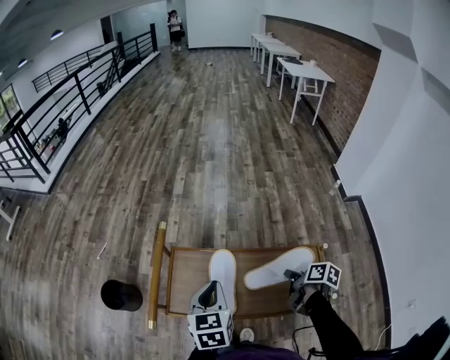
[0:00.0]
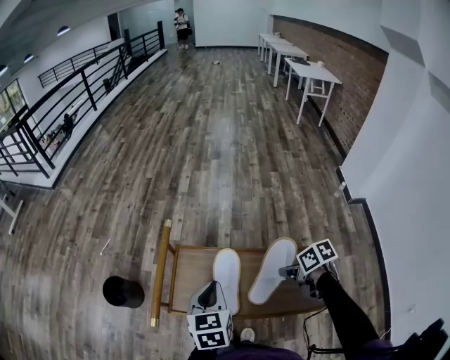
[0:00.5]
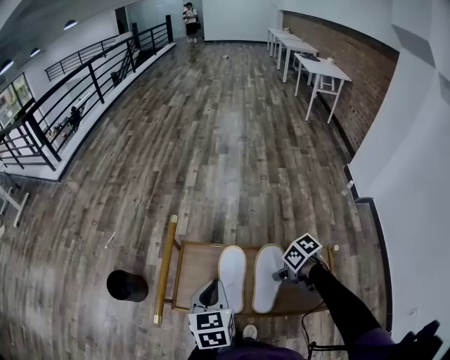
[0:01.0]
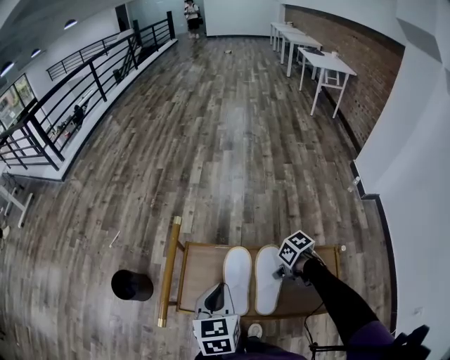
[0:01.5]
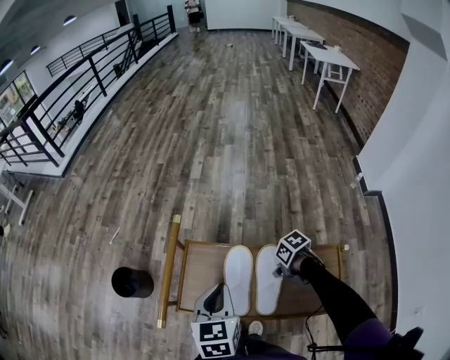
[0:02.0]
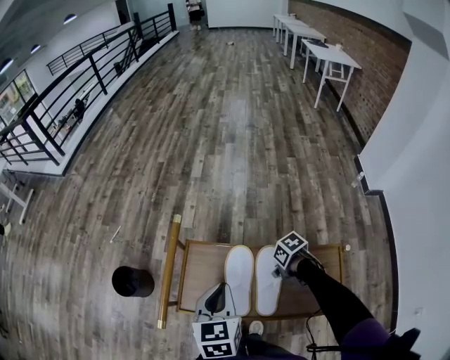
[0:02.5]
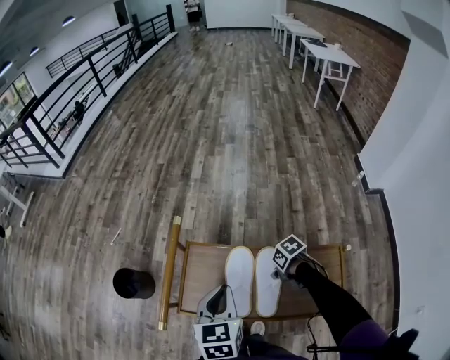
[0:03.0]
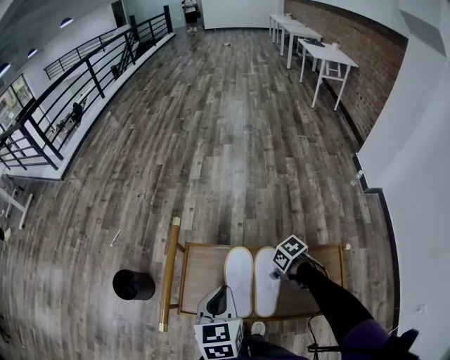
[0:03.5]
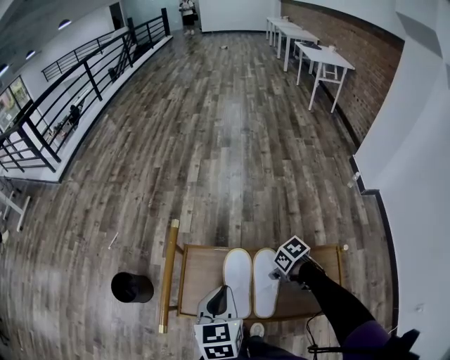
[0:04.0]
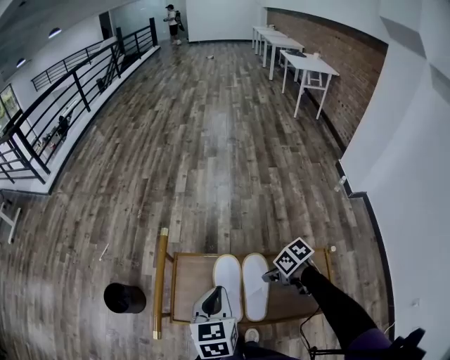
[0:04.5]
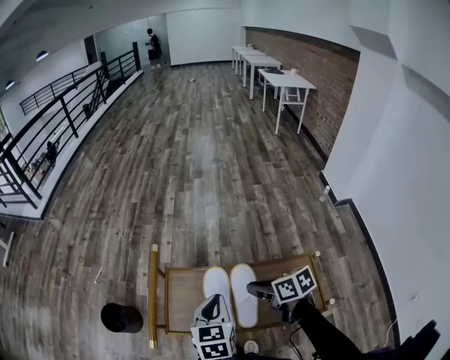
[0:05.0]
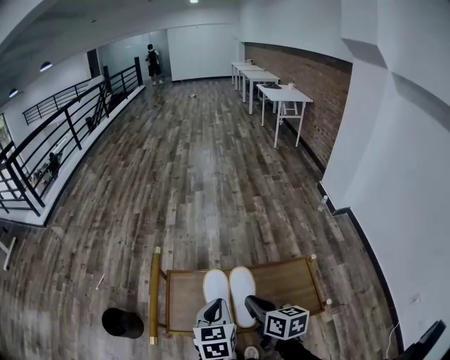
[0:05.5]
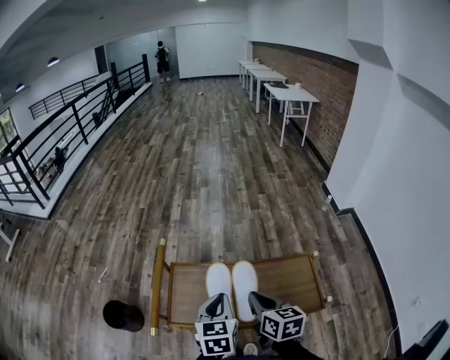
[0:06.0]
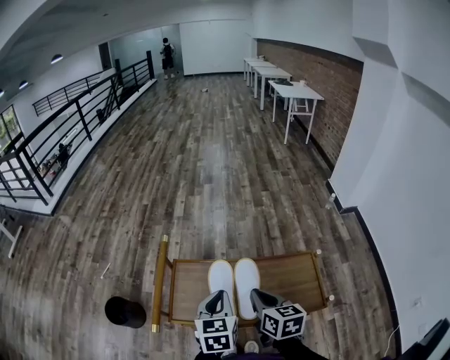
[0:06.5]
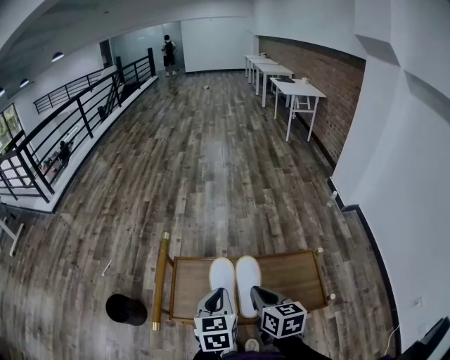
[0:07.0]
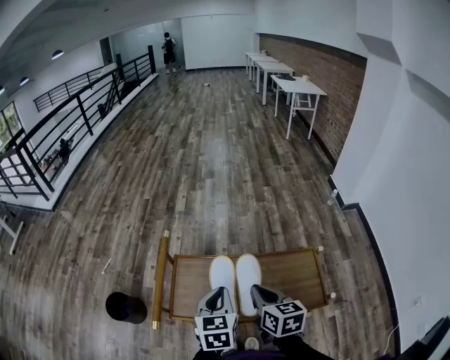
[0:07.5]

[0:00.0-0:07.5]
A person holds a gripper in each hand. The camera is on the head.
0.0 to 2.0 s: The right gripper changes place by about 15 cm, and swivels approximately 70 degrees.
2.0 to 4.0 s: There are only small adjustments of the grippers.
4.0 to 5.5 s: The left gripper ends up about 5 cm from where it was, while the right gripper shifts roughly 20 cm upward, and angles its fingers upward, by approximately 40 degrees.
5.5 to 7.5 s: The grippers move only a little.

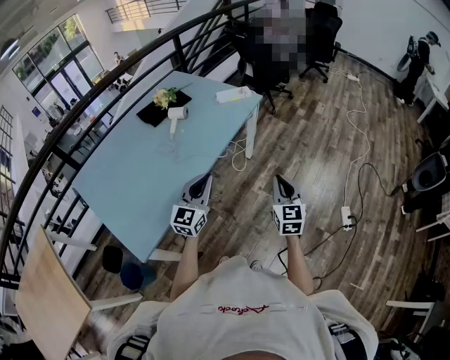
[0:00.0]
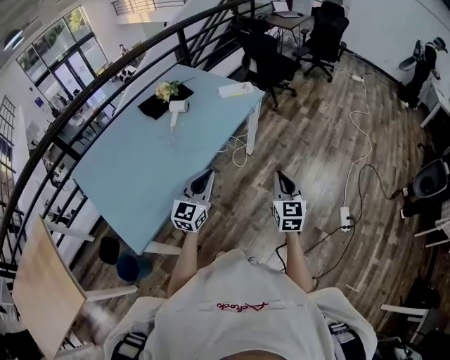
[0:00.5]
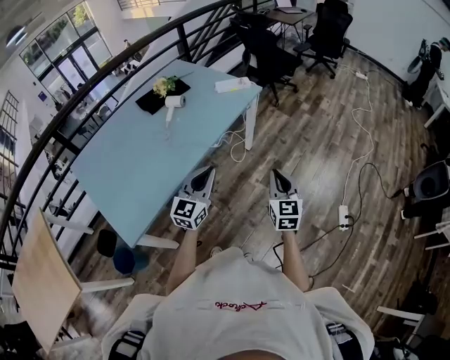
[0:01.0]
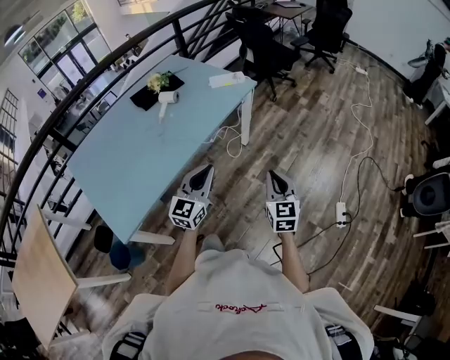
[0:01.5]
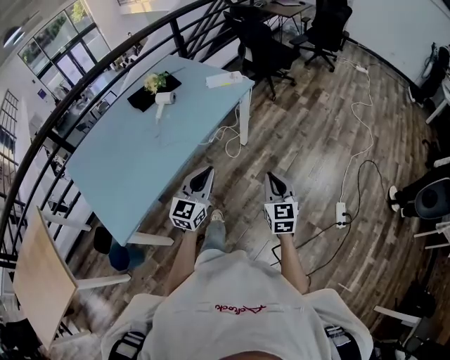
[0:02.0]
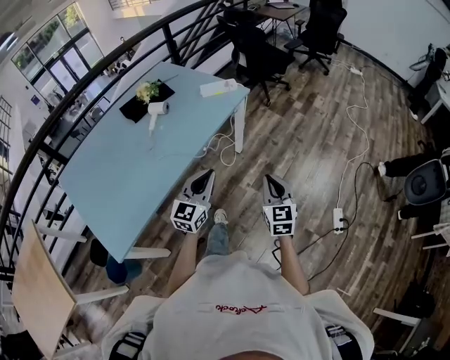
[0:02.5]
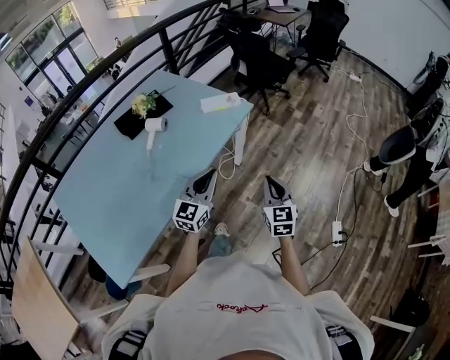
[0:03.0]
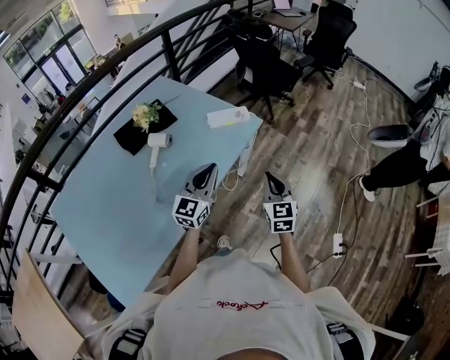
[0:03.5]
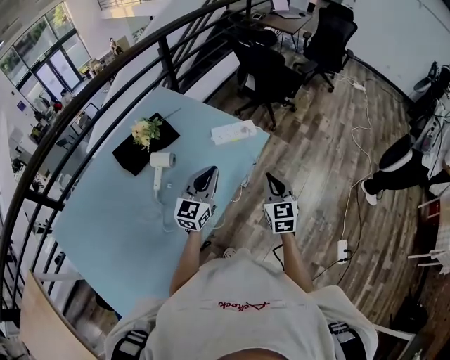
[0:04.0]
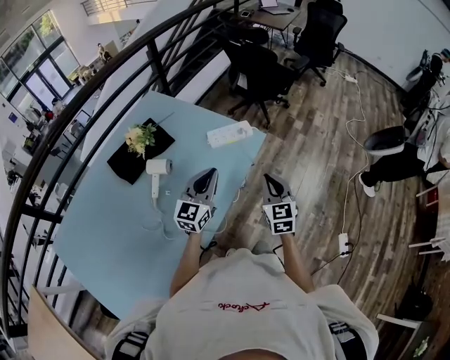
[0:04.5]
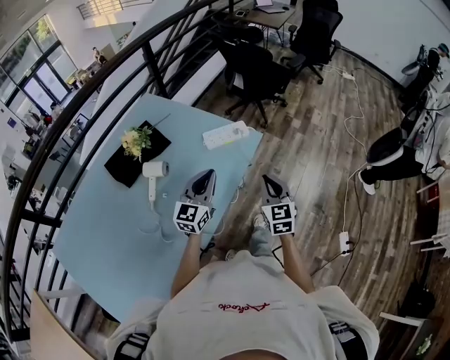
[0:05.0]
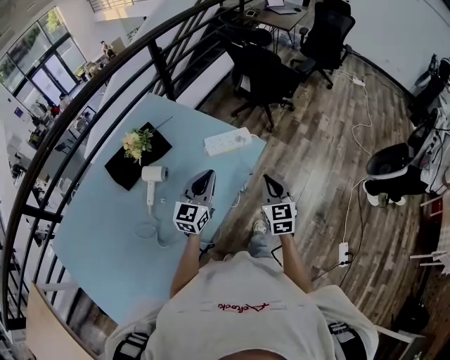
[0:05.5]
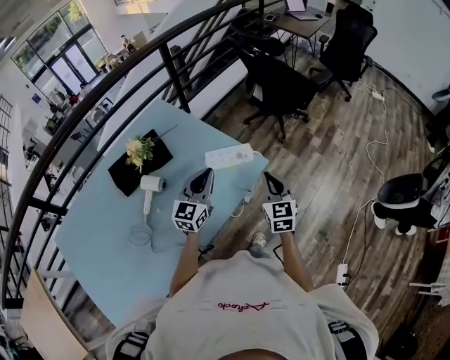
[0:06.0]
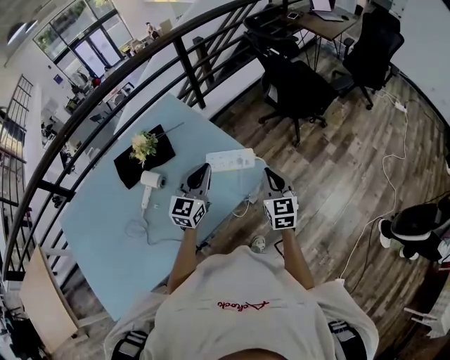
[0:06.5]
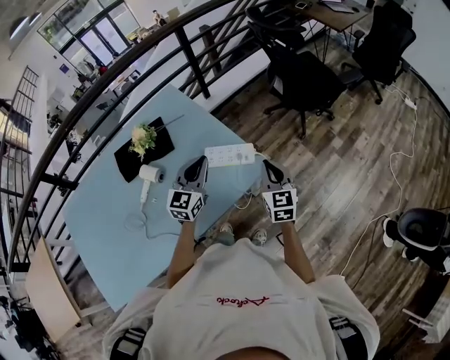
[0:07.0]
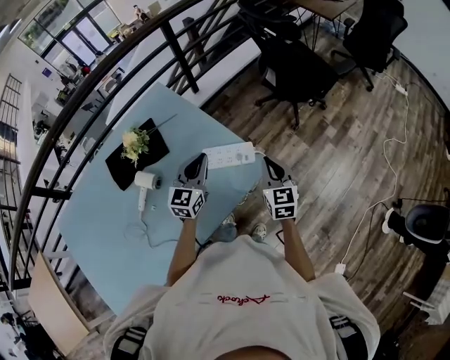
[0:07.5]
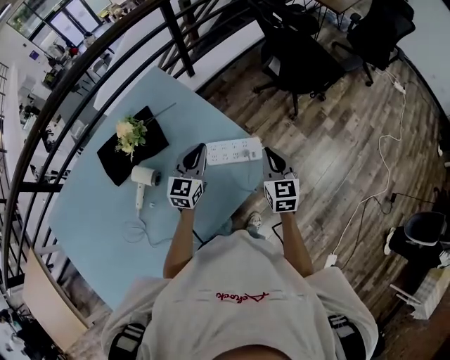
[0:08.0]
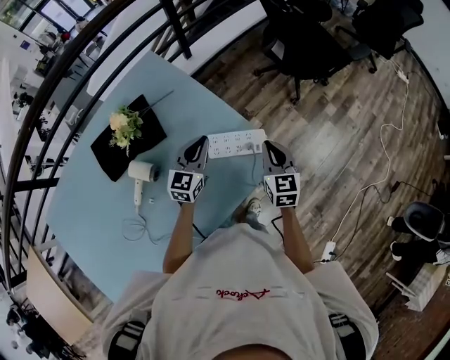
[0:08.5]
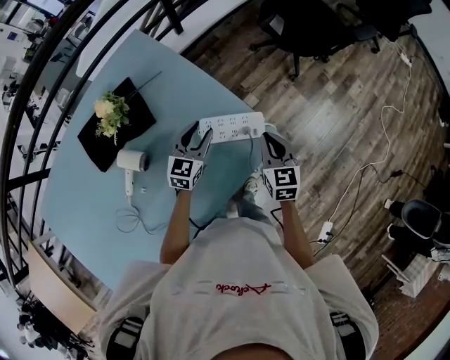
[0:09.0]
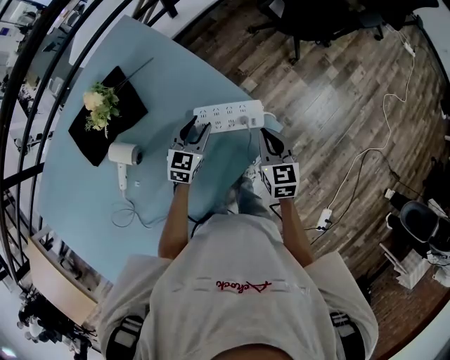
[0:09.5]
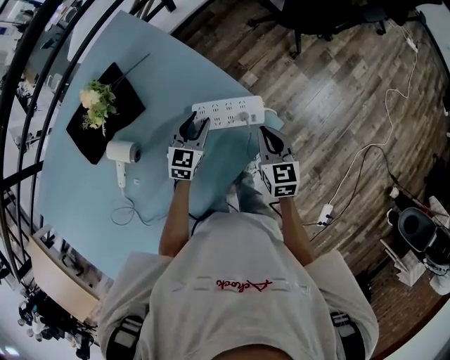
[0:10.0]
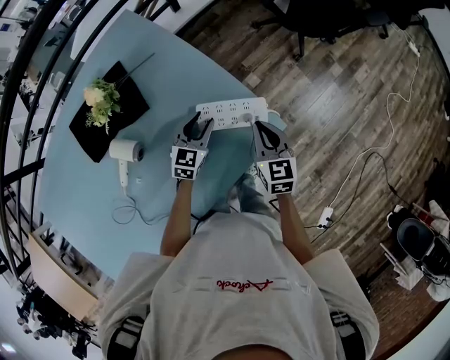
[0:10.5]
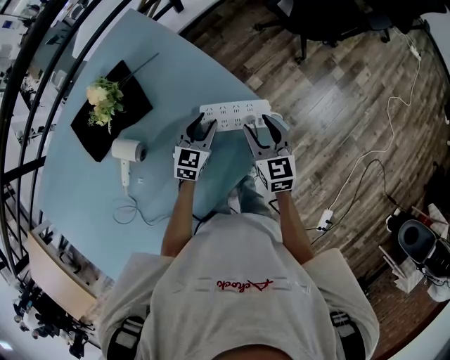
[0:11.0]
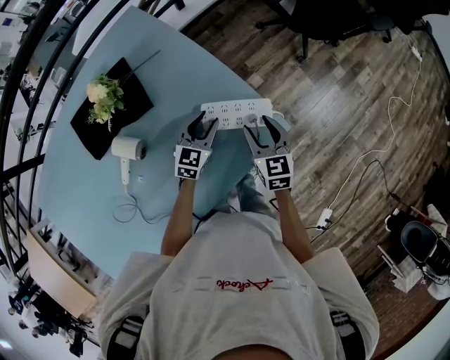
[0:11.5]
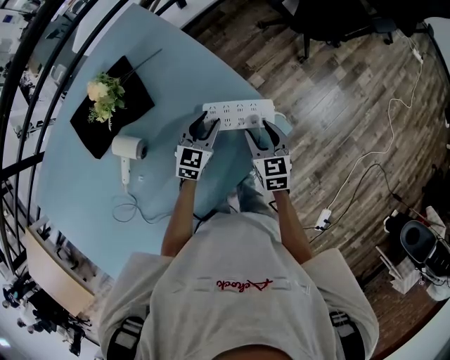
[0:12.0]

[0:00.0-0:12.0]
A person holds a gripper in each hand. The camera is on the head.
0.0 to 2.0 s: The right gripper travels to the right by roughly 10 cm. Meanwhile the left gripper moves to the right, approximately 10 cm.
2.0 to 4.0 s: Both grippers are carried forward, some 40 cm.
4.0 to 6.0 s: Both grippers travel together forward, approximately 15 cm.
6.0 to 8.0 s: The left gripper heads forward and downward, covering about 15 cm; the right gripper moves forward, roughly 15 cm.
8.0 to 10.0 s: Both grippers move downward, about 15 cm. The left gripper opens its fingers.
10.0 to 12.0 s: The right gripper changes place by roughly 5 cm, and opens.

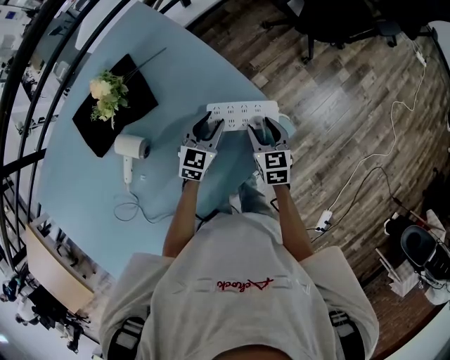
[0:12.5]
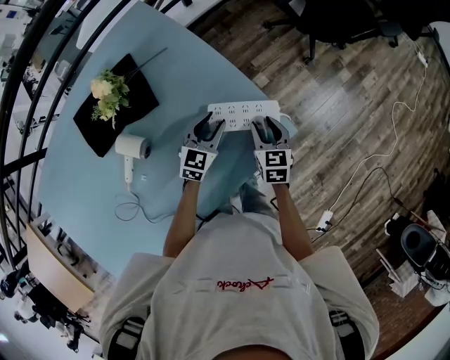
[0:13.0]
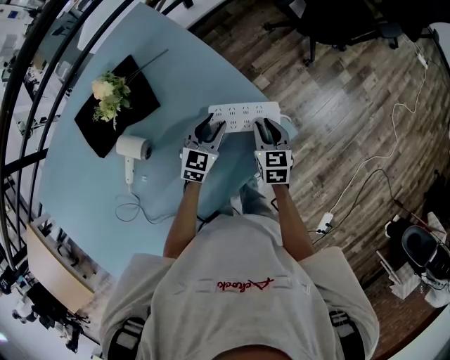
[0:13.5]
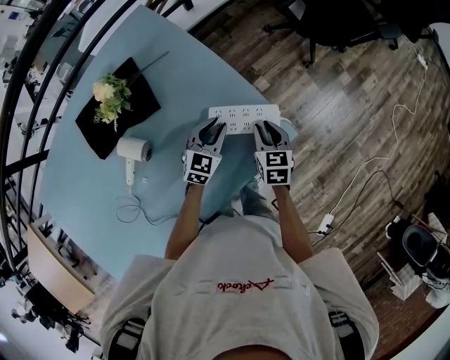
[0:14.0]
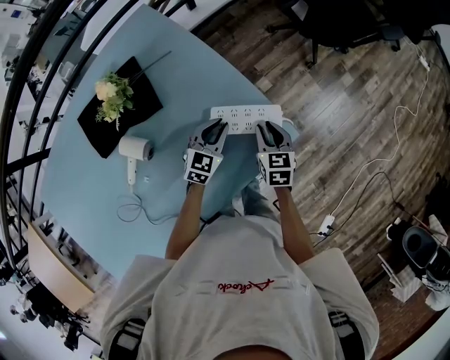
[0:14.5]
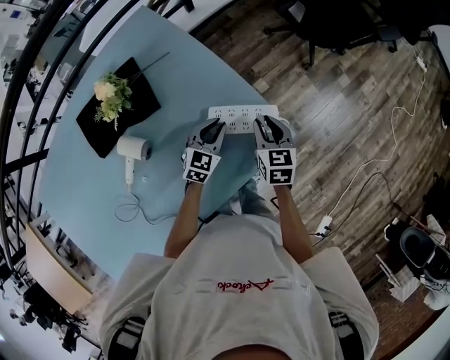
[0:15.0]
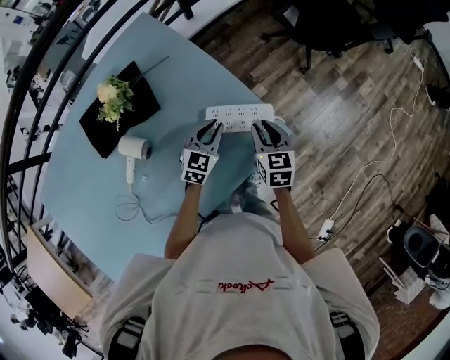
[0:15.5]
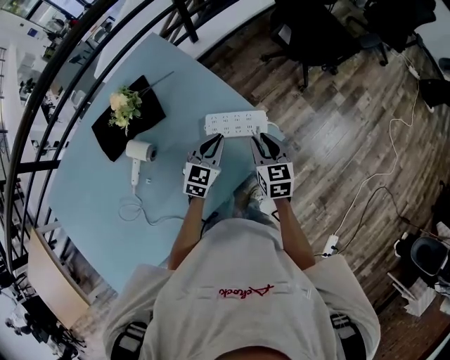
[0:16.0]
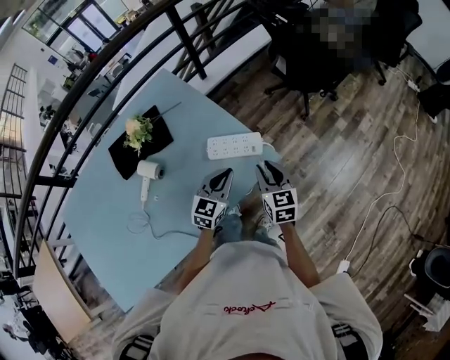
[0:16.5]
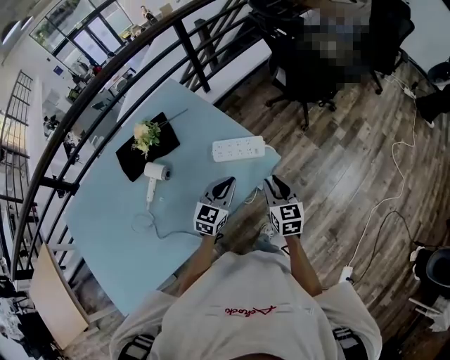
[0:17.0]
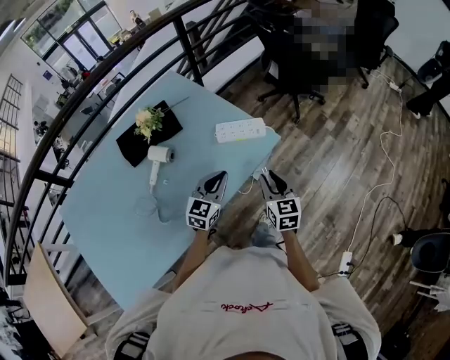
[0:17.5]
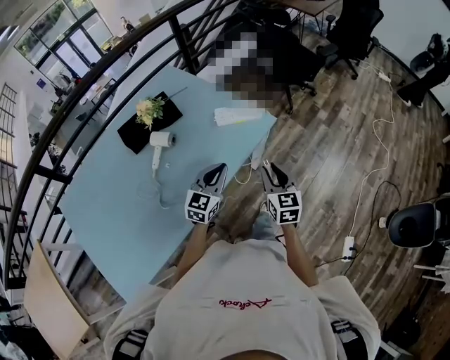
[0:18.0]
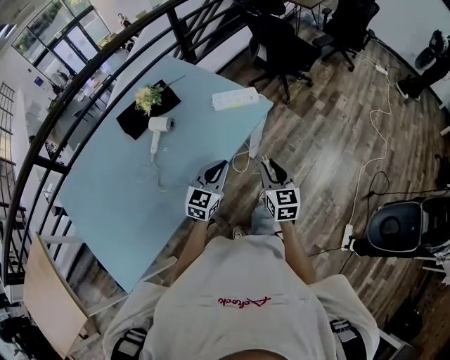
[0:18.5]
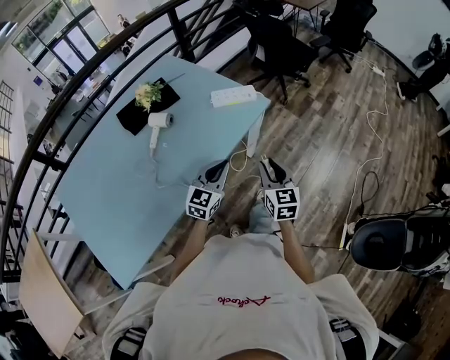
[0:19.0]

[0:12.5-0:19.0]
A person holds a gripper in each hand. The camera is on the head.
12.5 to 14.5 s: The right gripper closes up. The left gripper closes its fingers.
14.5 to 17.0 s: The grippers both shift backward, upward and to the right by approximately 25 cm.
17.0 to 19.0 s: The two grippers go approximately 25 cm backward.

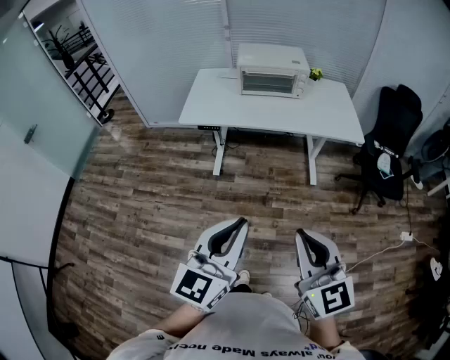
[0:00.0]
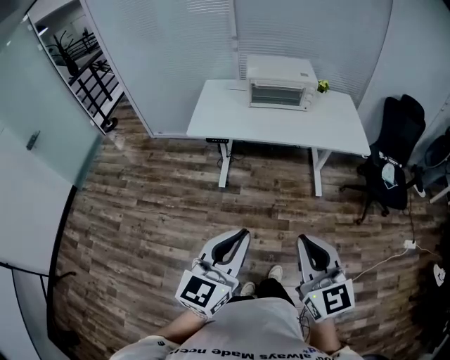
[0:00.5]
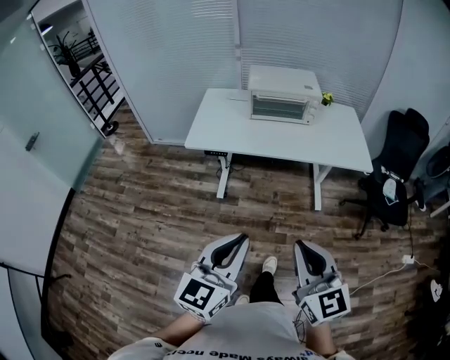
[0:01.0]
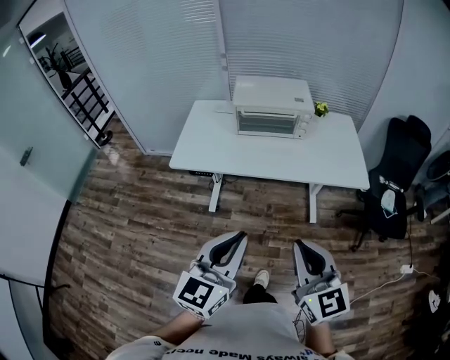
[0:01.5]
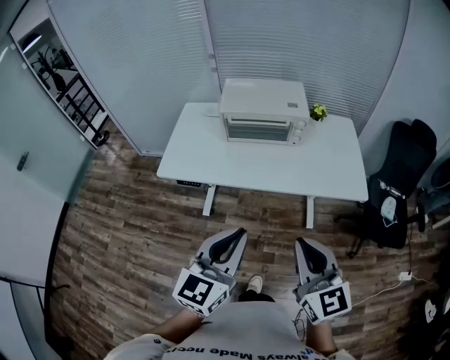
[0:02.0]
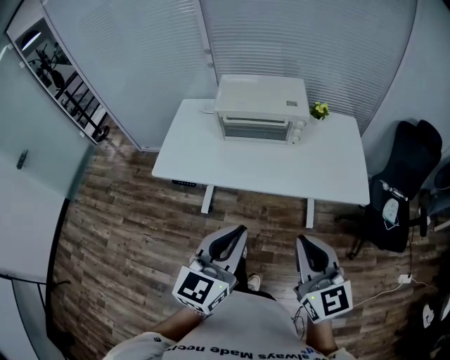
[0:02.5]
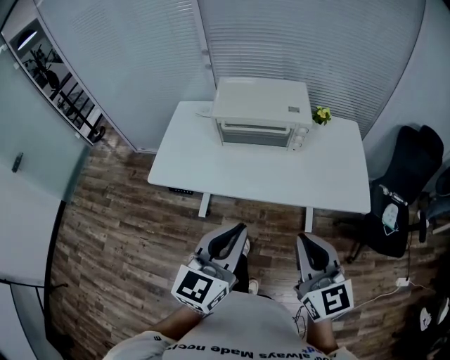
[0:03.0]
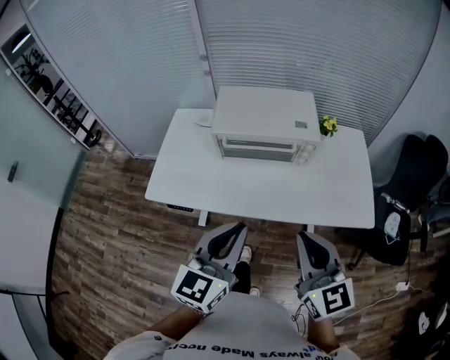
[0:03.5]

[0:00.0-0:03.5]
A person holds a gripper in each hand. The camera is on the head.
0.0 to 2.0 s: Both grippers travel together forward, roughly 30 cm.
2.0 to 3.5 s: Both grippers travel together forward, about 20 cm.
